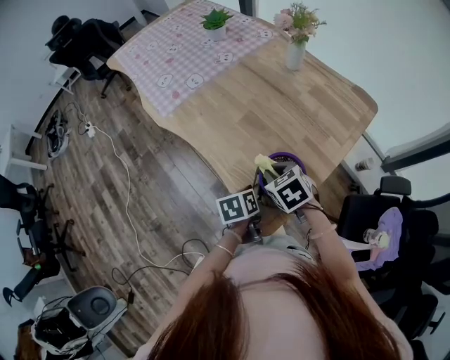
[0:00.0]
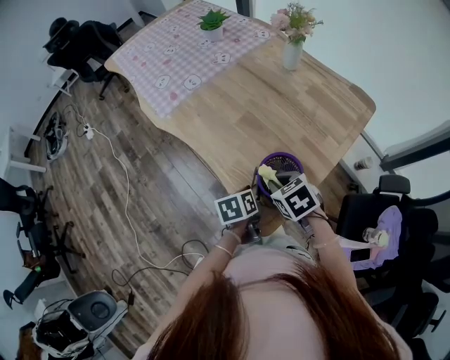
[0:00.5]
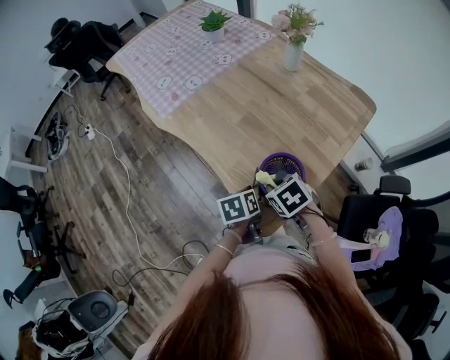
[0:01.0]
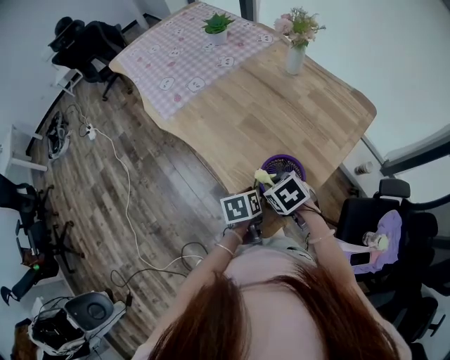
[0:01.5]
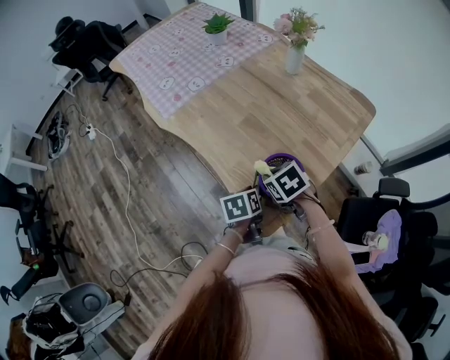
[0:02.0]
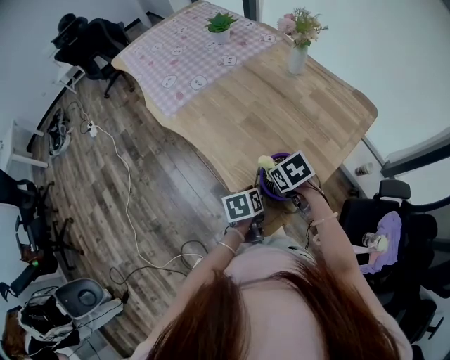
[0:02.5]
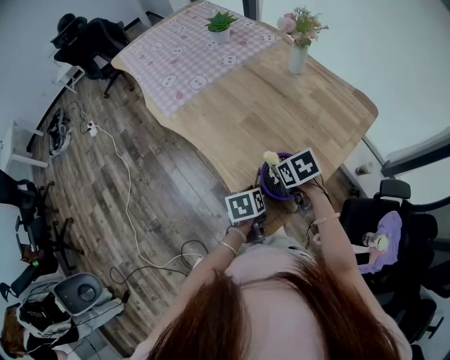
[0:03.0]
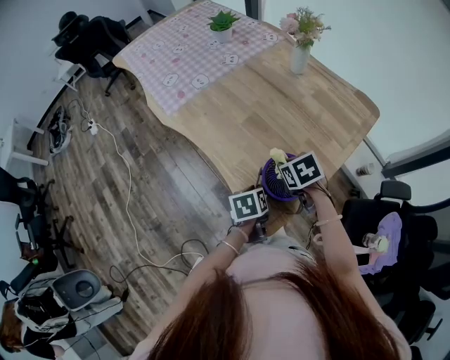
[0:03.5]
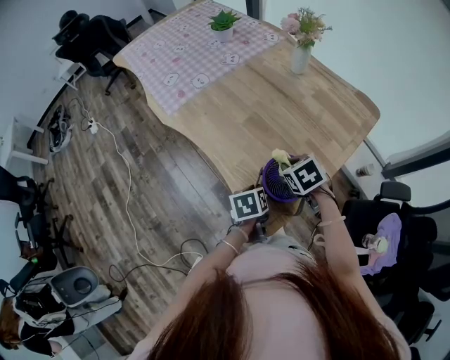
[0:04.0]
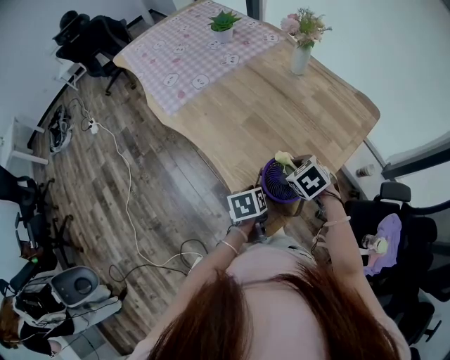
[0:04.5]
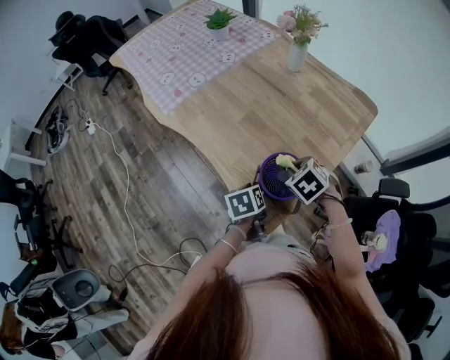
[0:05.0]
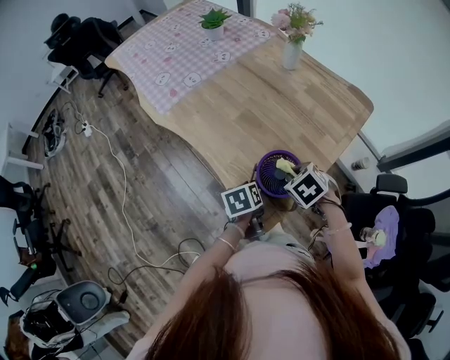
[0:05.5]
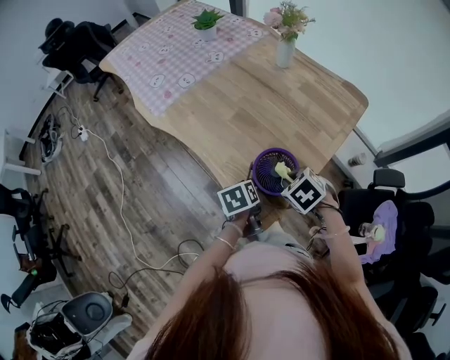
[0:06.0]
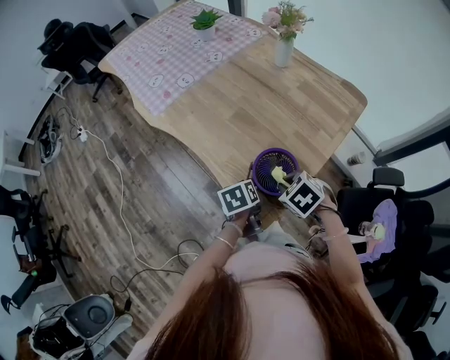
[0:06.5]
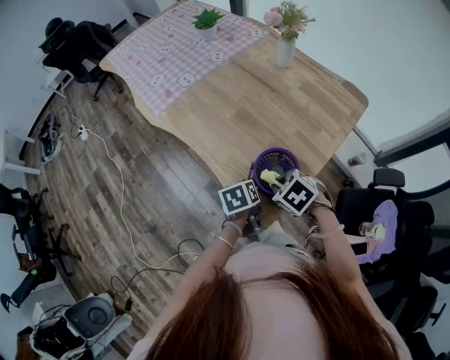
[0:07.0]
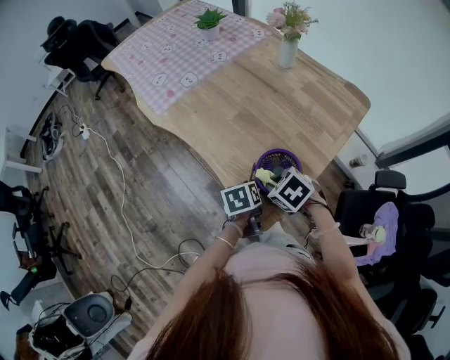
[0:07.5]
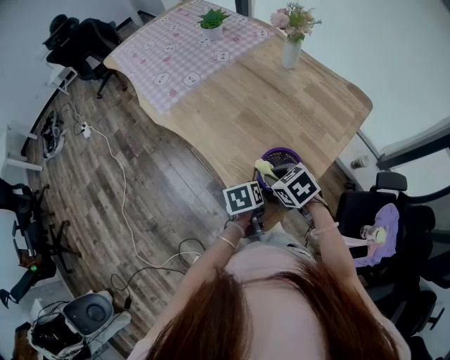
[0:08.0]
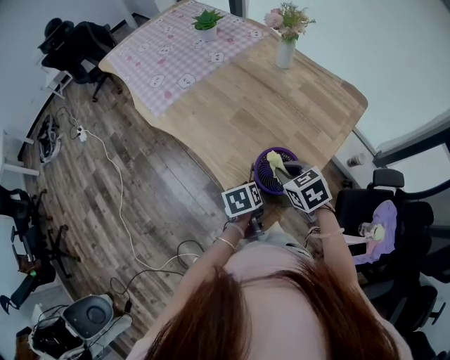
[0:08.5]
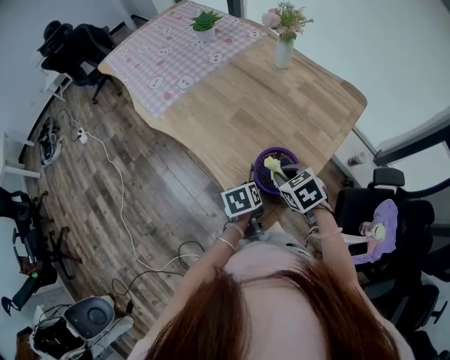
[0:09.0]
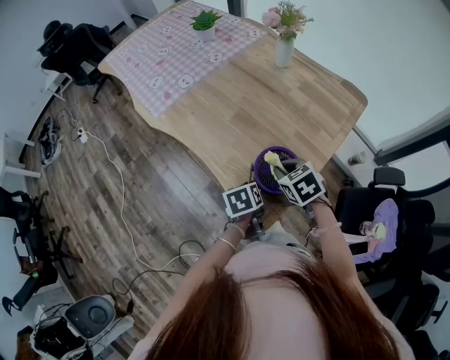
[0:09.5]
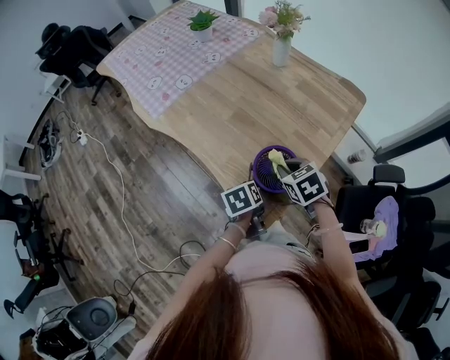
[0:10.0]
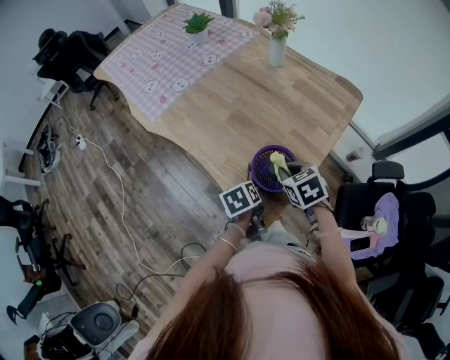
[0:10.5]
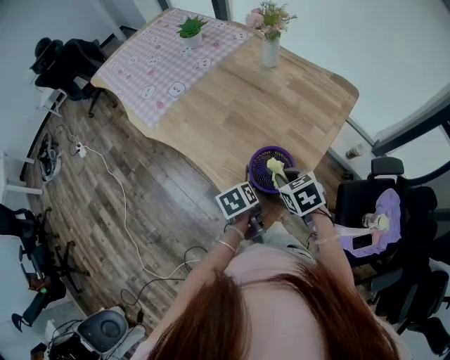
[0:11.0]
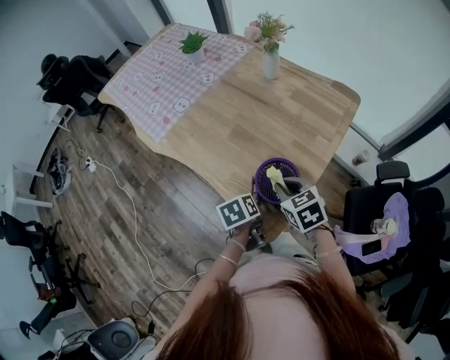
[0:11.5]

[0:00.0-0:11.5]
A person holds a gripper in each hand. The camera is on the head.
0:00.0 to 0:02.0: The grippers move only a little.
0:02.0 to 0:04.0: The right gripper travels to the right by about 5 cm.
0:04.0 to 0:06.0: The right gripper heads backward, covering about 10 cm.
0:06.0 to 0:07.5: The right gripper travels to the left by approximately 5 cm.
0:07.5 to 0:09.5: The right gripper shifts by about 5 cm, and changes its angle by about 20 degrees.
0:09.5 to 0:11.5: The grippers move only a little.

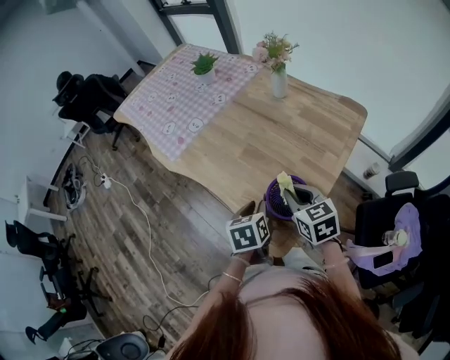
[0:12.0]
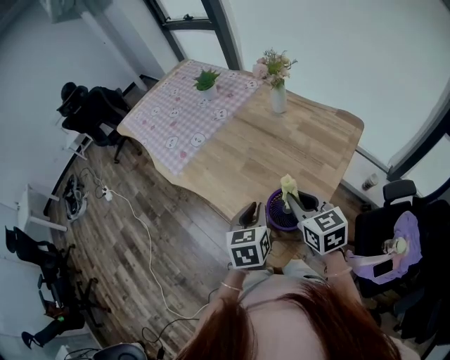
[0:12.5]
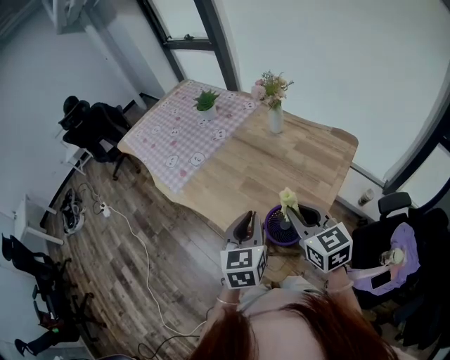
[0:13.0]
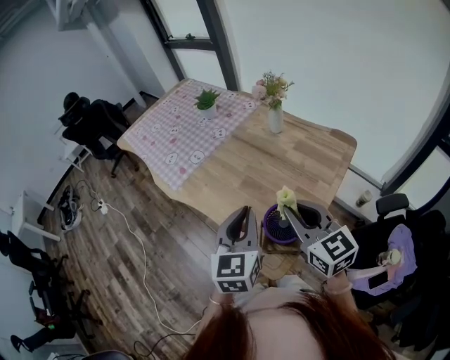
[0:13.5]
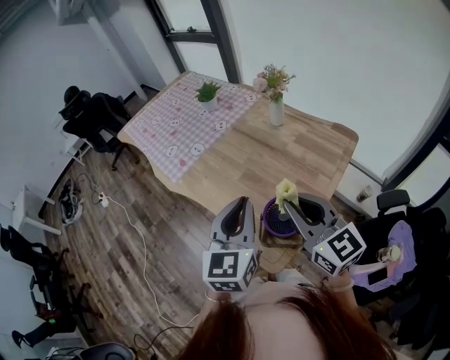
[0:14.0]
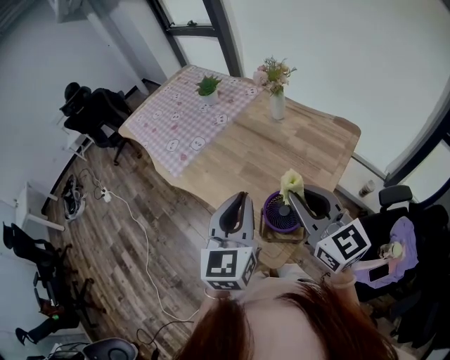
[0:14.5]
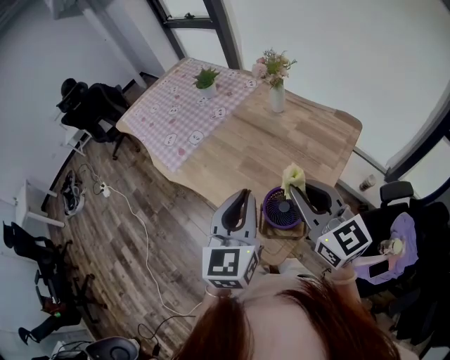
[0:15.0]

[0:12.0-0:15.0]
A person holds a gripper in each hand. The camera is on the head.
0:12.0 to 0:13.5: The two grippers go about 20 cm upward. The right gripper swivels approximately 30 degrees, while the left gripper tilts its fingers some 30 degrees upward.
0:13.5 to 0:15.0: There are only small adjustments of the grippers.

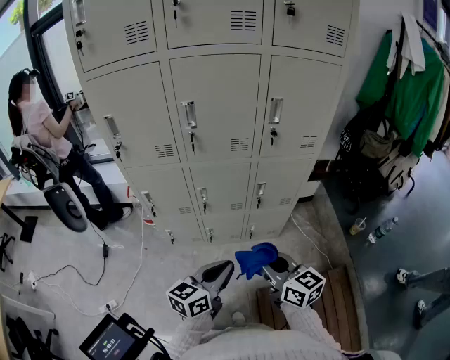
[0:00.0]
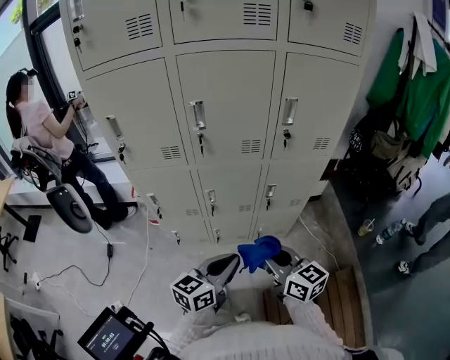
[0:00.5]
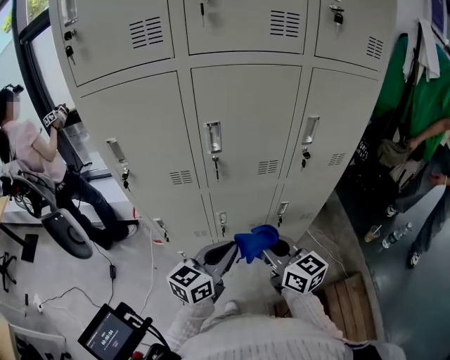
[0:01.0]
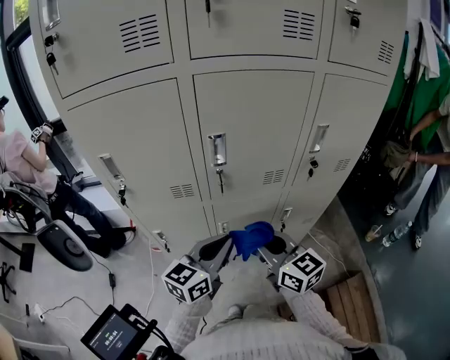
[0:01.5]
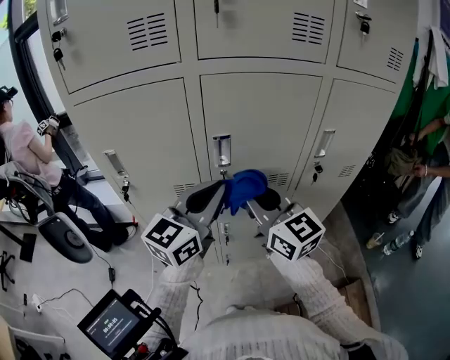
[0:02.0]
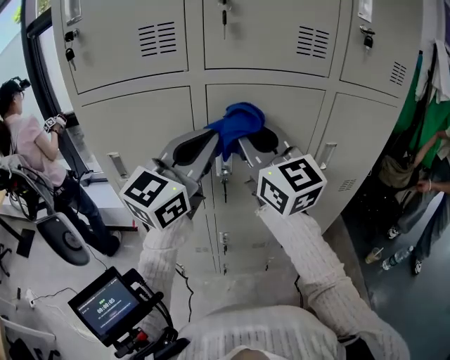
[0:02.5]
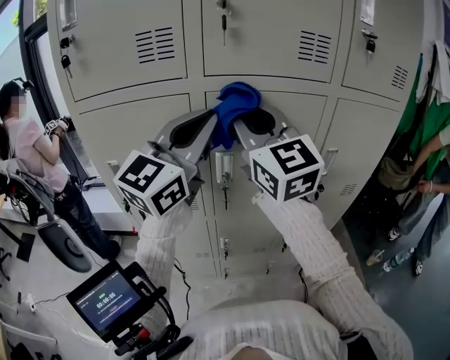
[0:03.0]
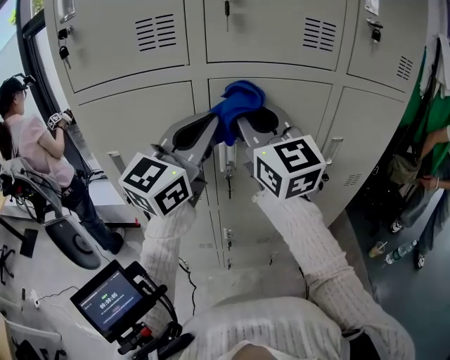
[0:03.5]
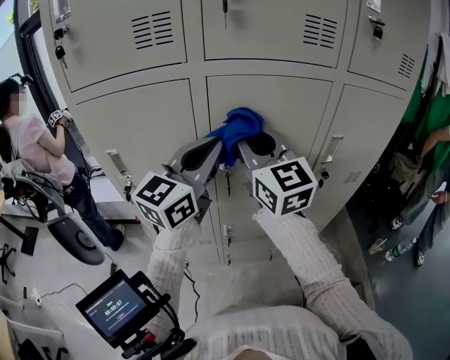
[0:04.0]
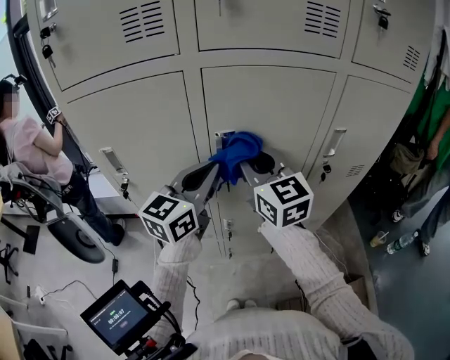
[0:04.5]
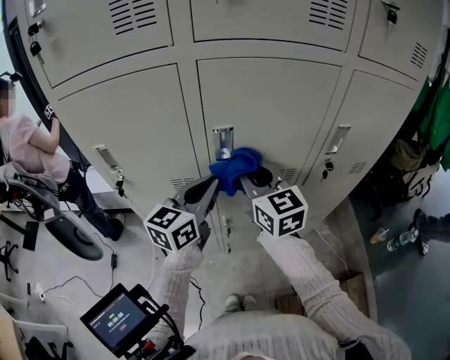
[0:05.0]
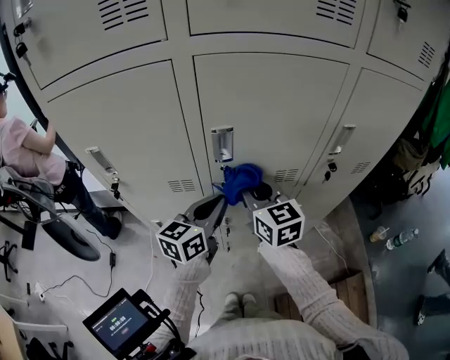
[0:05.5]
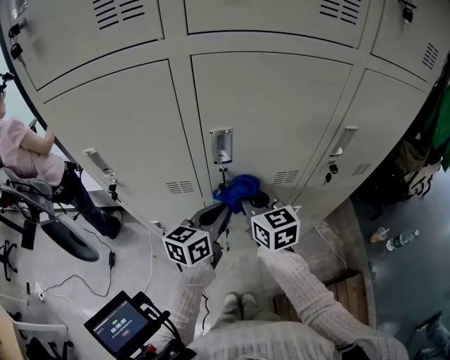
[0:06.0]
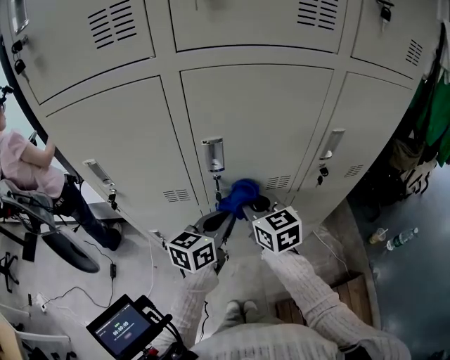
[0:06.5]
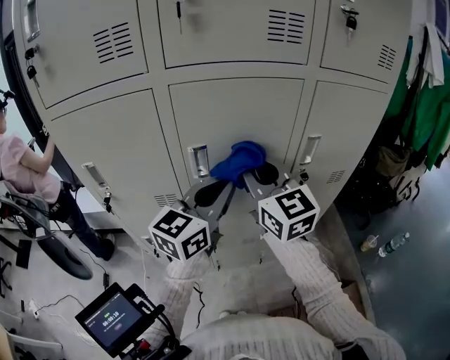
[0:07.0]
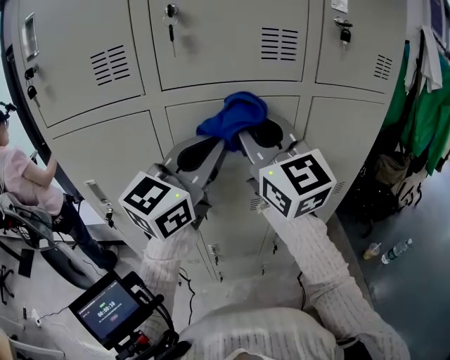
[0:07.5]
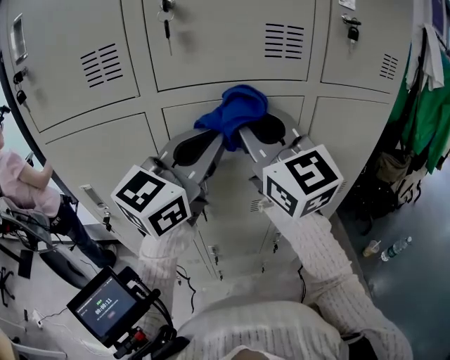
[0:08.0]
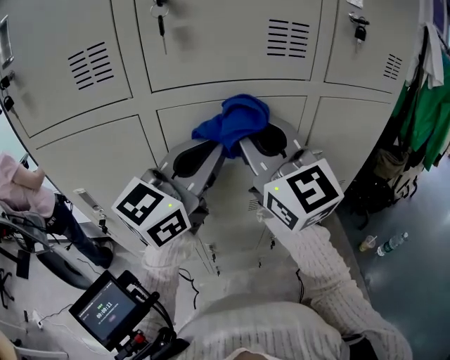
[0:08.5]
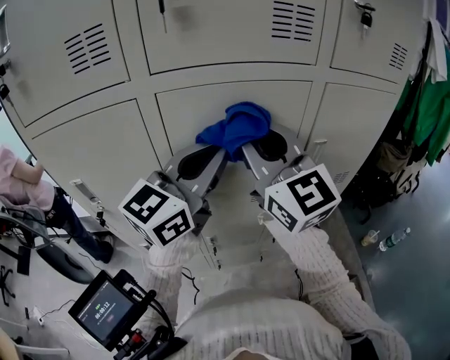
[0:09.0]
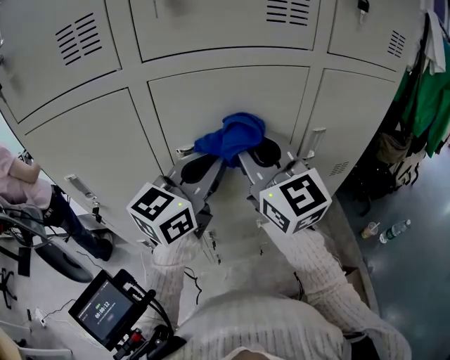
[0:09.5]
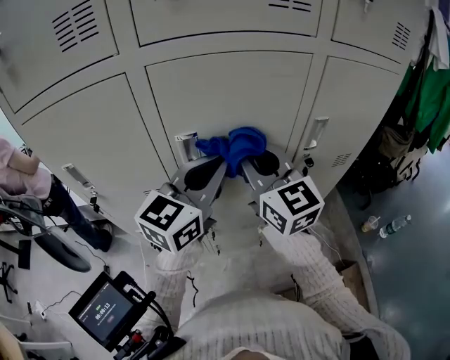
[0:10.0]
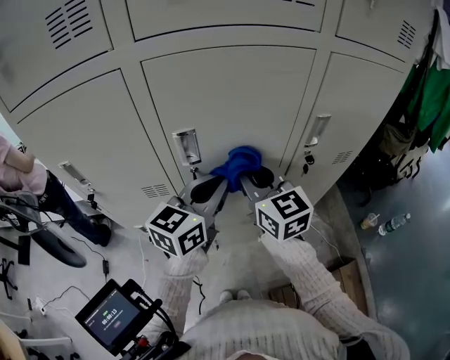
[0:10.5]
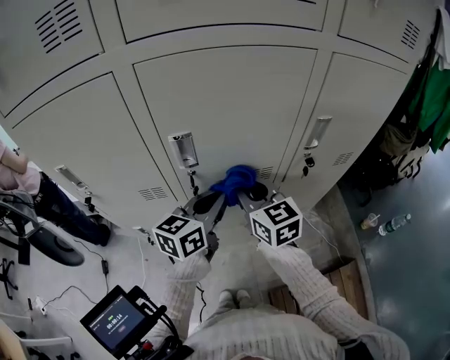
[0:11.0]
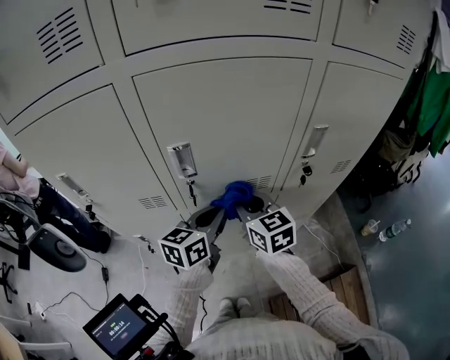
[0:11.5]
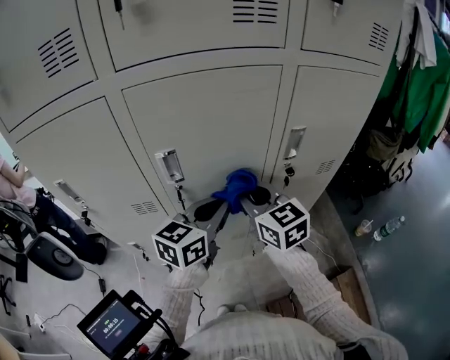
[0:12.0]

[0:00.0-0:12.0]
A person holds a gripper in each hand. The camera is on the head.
0:00.0 to 0:02.0: Both grippers move forward, upward and to the left, about 40 cm. The left gripper changes its angle by approximately 30 degrees; the right gripper changes its angle by about 30 degrees.
0:02.0 to 0:04.0: The grippers both shift upward and forward by some 10 cm.
0:04.0 to 0:06.0: Both grippers travel together downward, roughly 25 cm. The right gripper swivels about 30 degrees, while the left gripper turns by roughly 30 degrees.
0:06.0 to 0:08.0: The two grippers go approximately 35 cm upward. The right gripper tips its fingers upward by roughly 30 degrees, while the left gripper changes its angle by roughly 40 degrees.
0:08.0 to 0:10.0: Both grippers move downward, some 15 cm.
0:10.0 to 0:12.0: The two grippers go approximately 10 cm downward.
